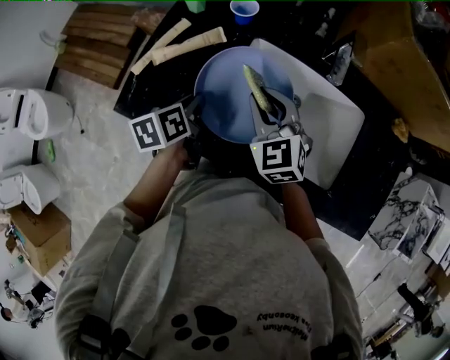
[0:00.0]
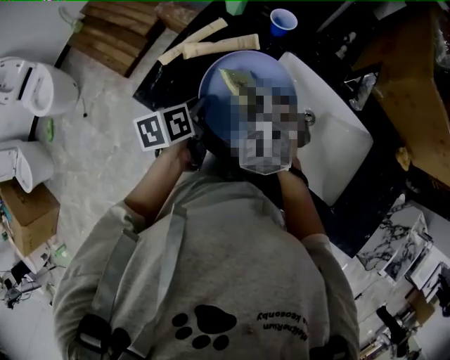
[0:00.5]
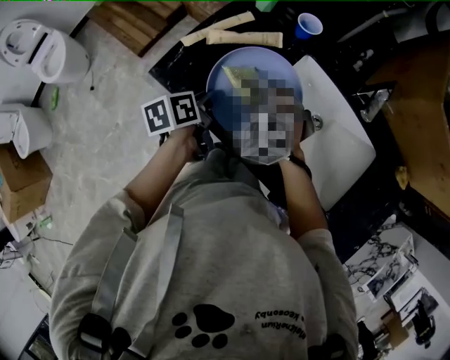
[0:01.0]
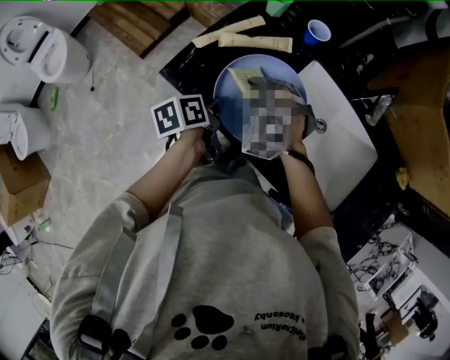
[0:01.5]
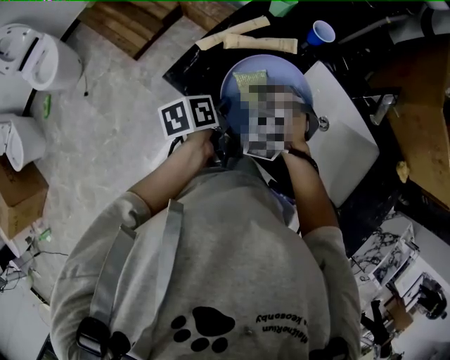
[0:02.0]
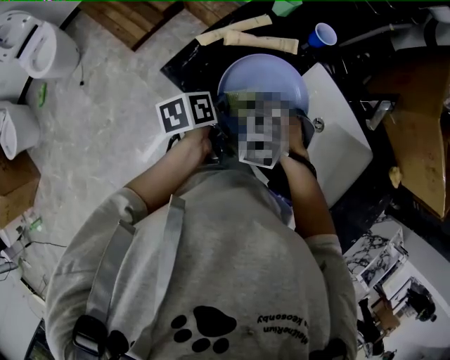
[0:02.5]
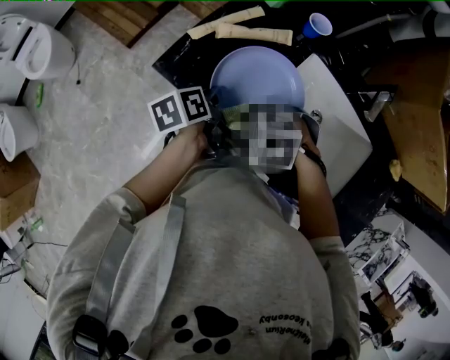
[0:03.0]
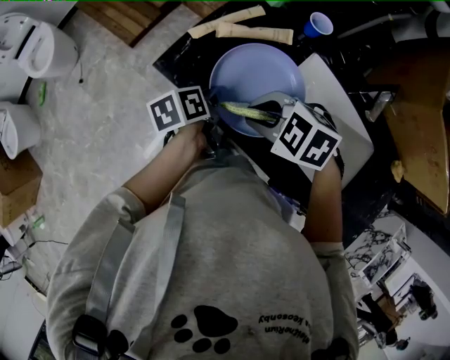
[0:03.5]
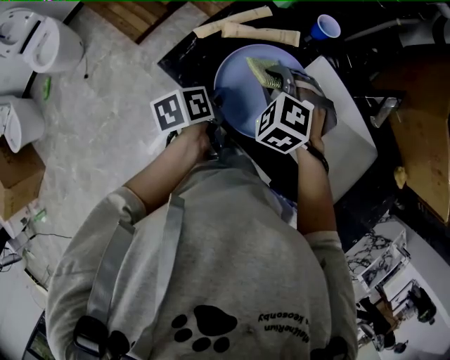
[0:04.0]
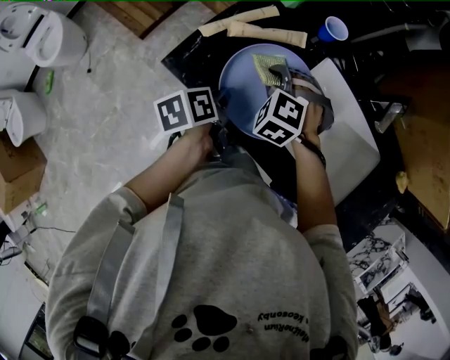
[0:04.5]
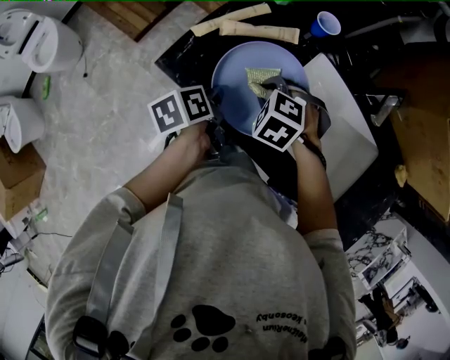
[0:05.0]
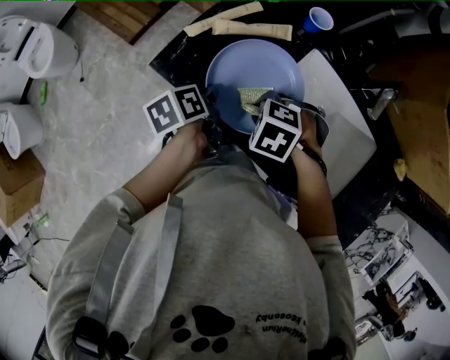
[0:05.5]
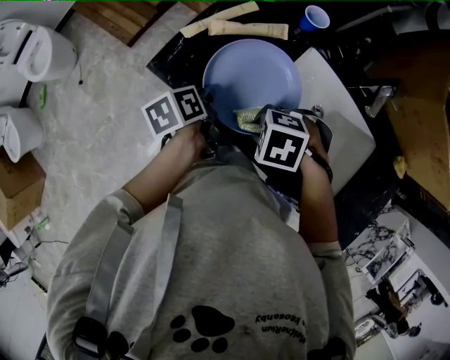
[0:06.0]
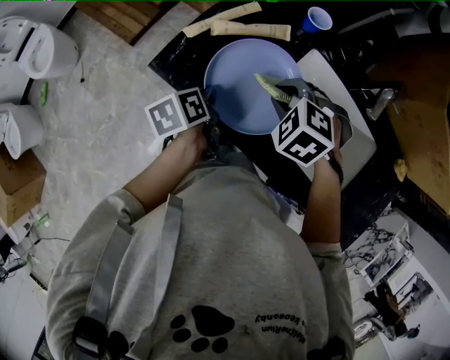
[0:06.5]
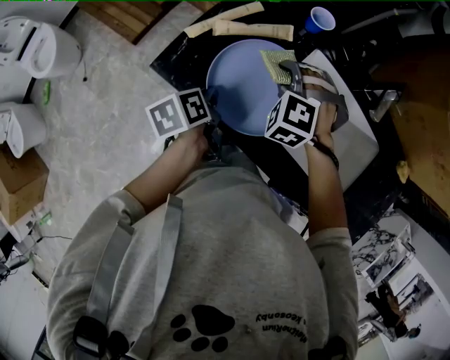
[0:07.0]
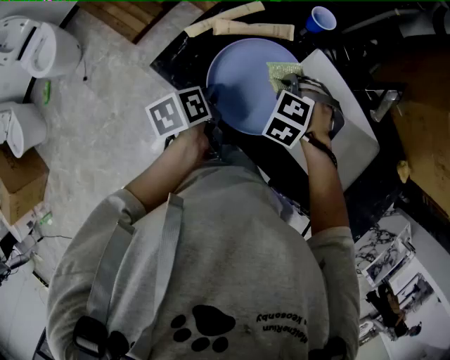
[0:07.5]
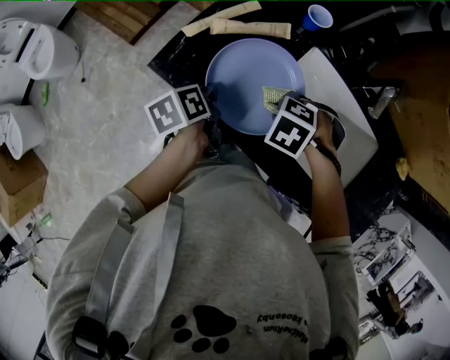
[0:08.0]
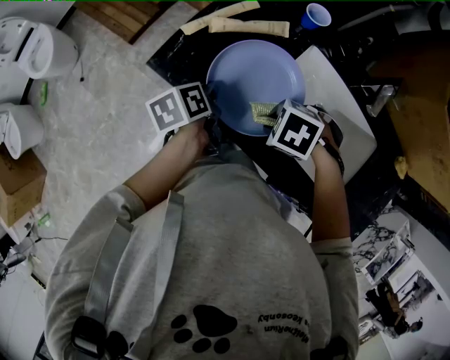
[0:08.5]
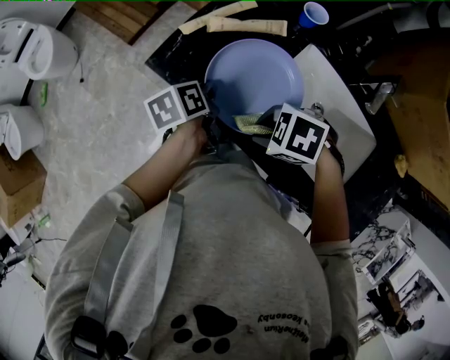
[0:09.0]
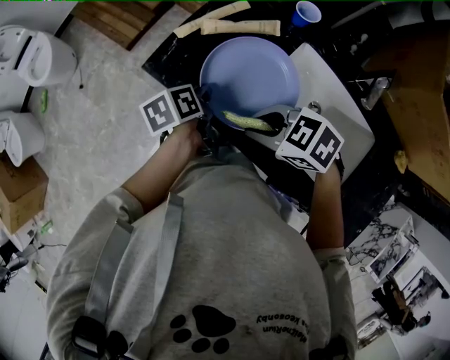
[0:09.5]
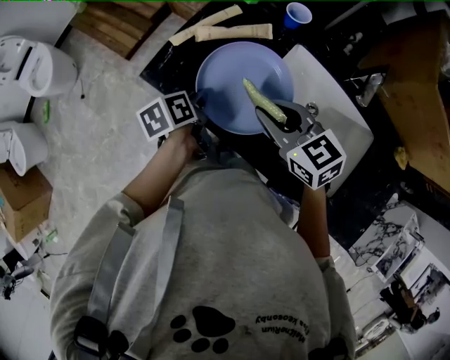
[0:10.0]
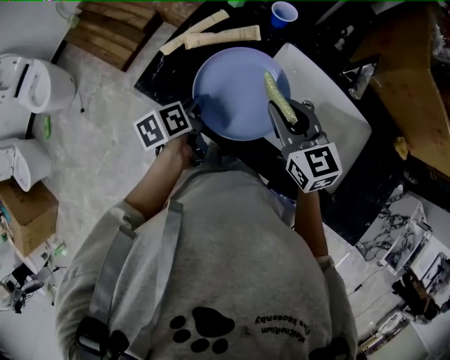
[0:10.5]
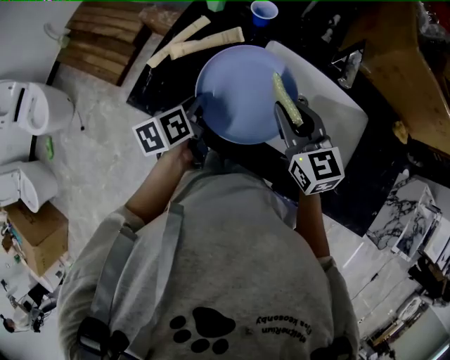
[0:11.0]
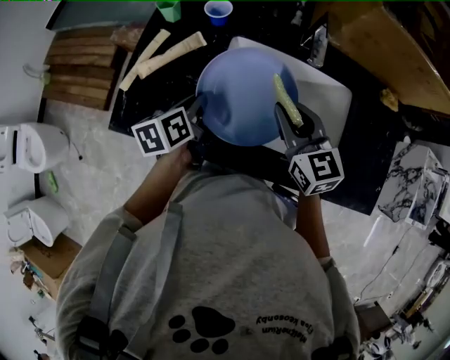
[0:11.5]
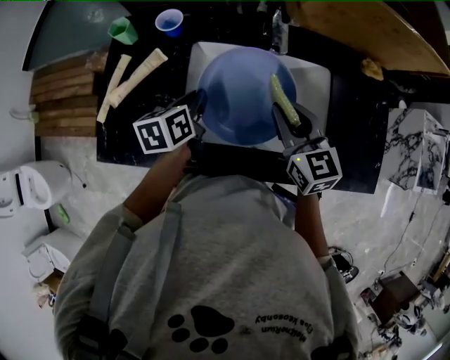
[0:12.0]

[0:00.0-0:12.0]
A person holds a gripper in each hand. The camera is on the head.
0:00.0 to 0:02.0: The left gripper travels to the left by approximately 10 cm, and turns by roughly 20 degrees. The right gripper moves to the left and downward, about 20 cm, and twists about 60 degrees counterclockwise, seen from behind.
0:04.0 to 0:06.0: The right gripper ends up roughly 15 cm from where it was, and rotates roughly 40 degrees.
0:08.0 to 0:10.0: The right gripper heads upward, covering roughly 10 cm, and tilts its fingers approximately 60 degrees upward.
0:10.0 to 0:12.0: The right gripper moves some 20 cm, and rotates roughly 50 degrees, while the left gripper changes place by approximately 25 cm, and rotates about 40 degrees.

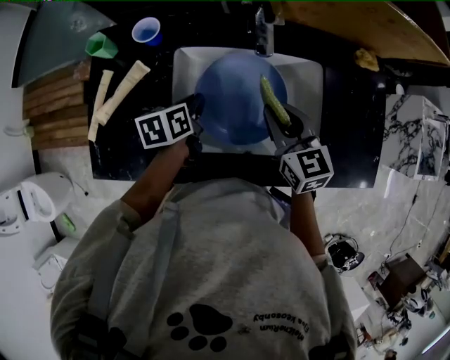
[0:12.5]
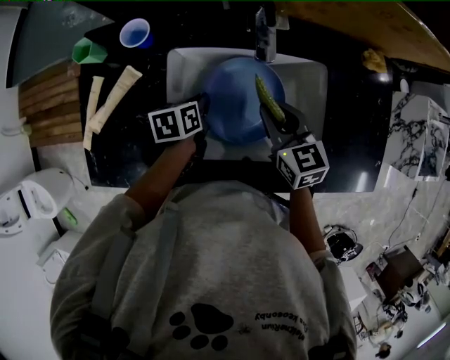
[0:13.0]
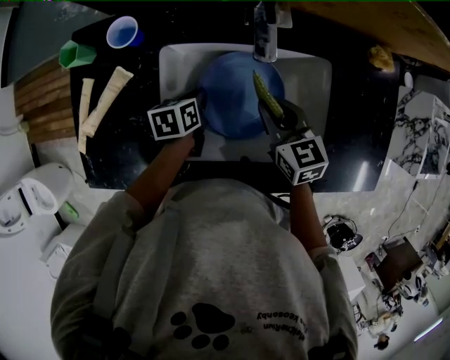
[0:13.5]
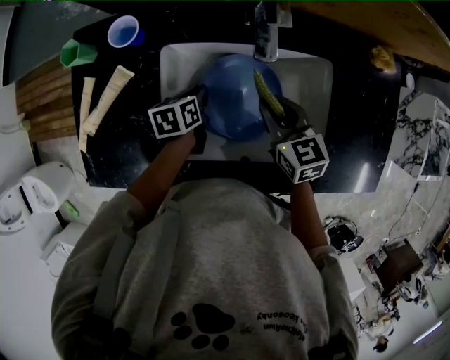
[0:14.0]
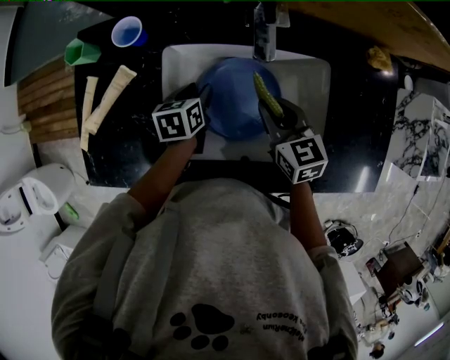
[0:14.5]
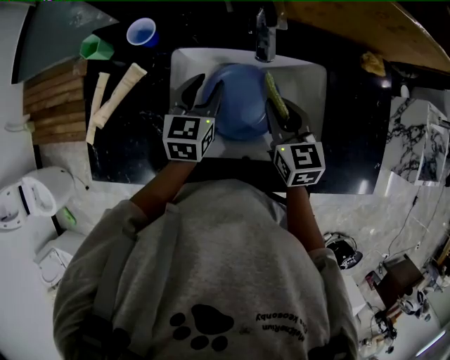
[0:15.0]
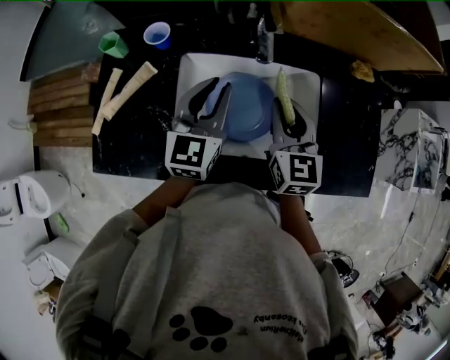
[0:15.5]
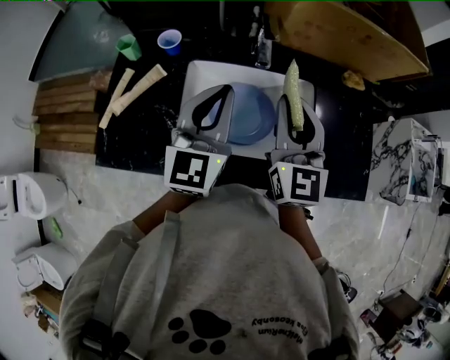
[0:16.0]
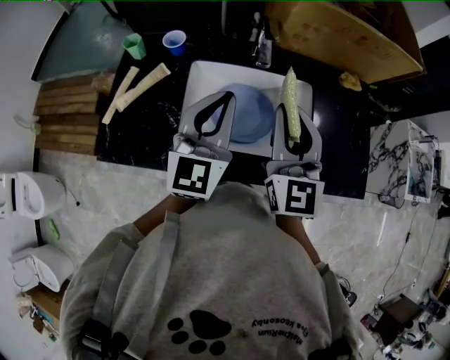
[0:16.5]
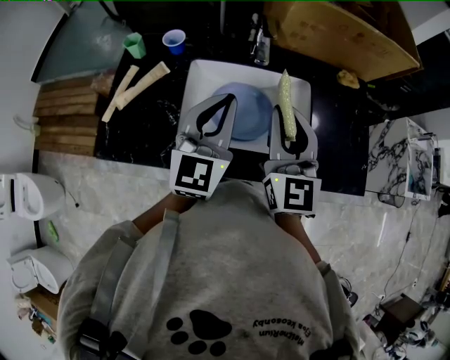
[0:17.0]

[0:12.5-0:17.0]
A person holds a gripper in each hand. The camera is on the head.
0:12.5 to 0:14.5: Both grippers travel together downward, approximately 5 cm. The left gripper opens.
0:14.5 to 0:17.0: The left gripper goes some 30 cm upward, angles its fingers upward, by some 50 degrees, and closes. The right gripper moves upward and backward, roughly 25 cm, and tilts its fingers approximately 40 degrees upward.

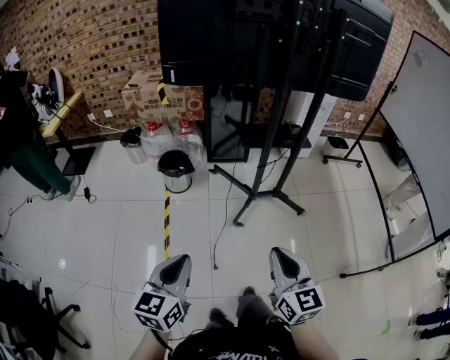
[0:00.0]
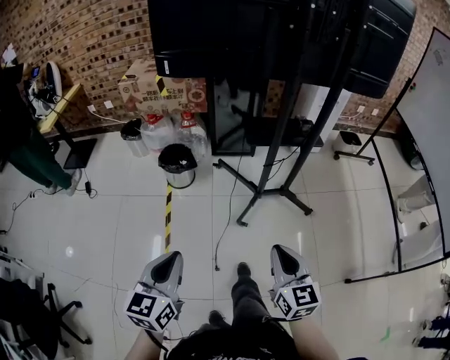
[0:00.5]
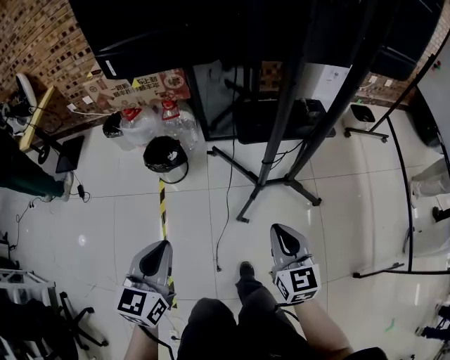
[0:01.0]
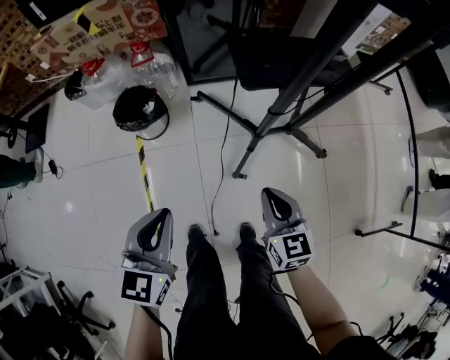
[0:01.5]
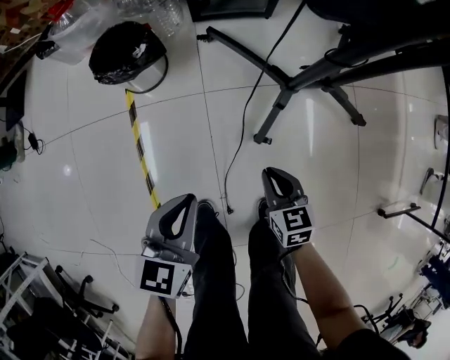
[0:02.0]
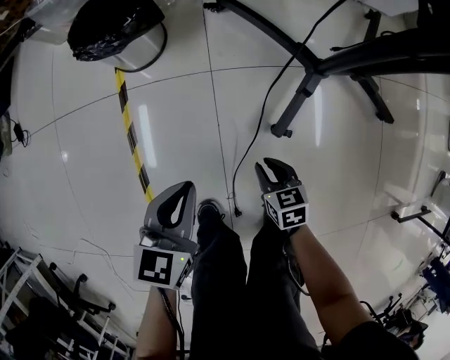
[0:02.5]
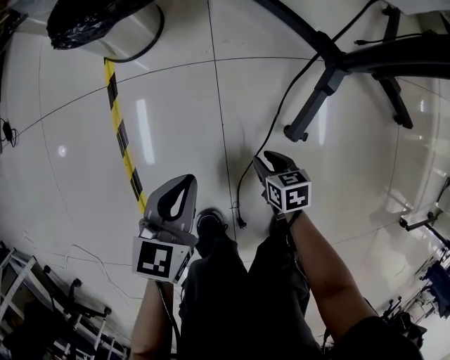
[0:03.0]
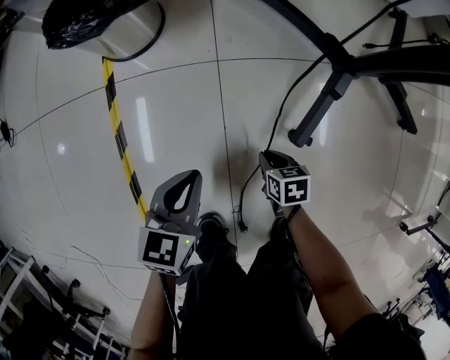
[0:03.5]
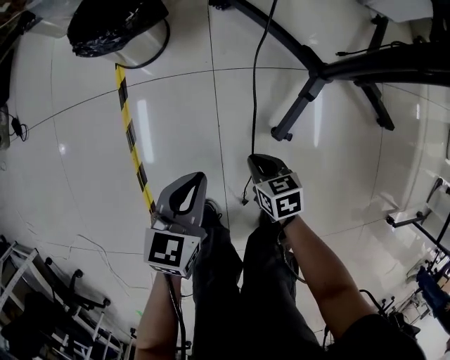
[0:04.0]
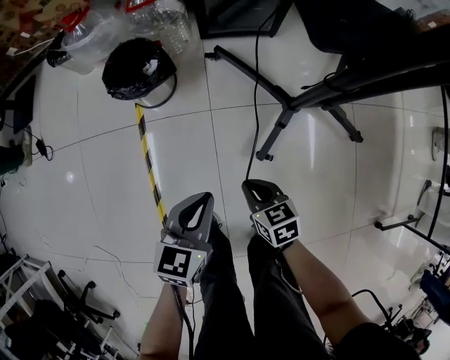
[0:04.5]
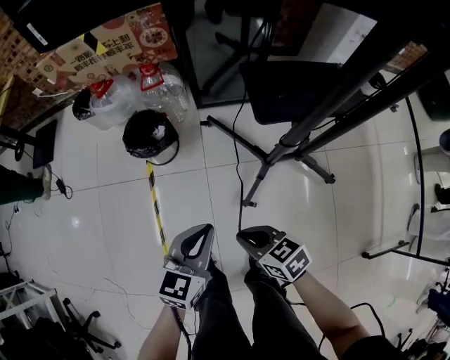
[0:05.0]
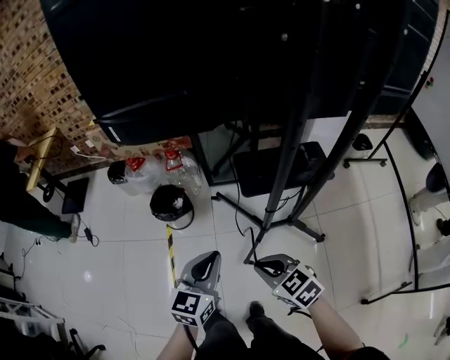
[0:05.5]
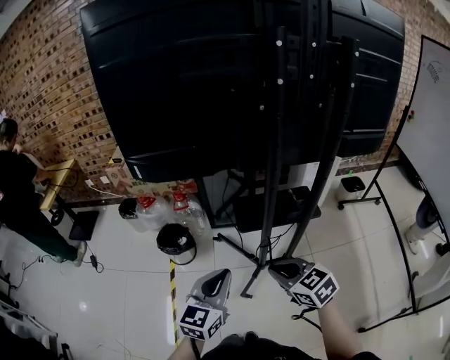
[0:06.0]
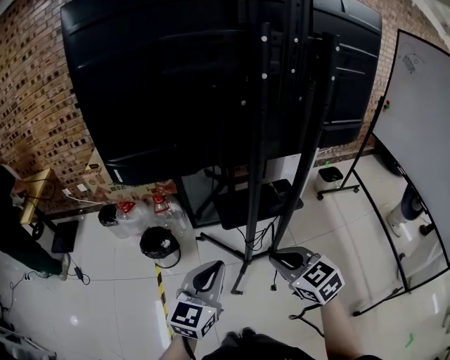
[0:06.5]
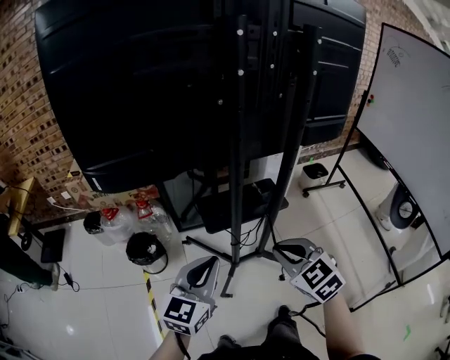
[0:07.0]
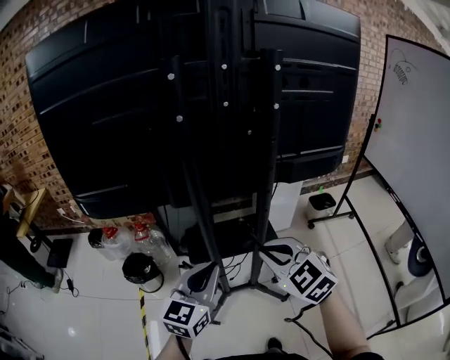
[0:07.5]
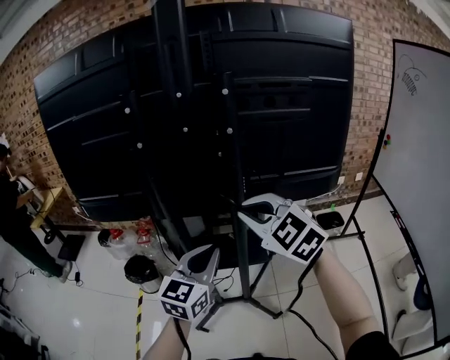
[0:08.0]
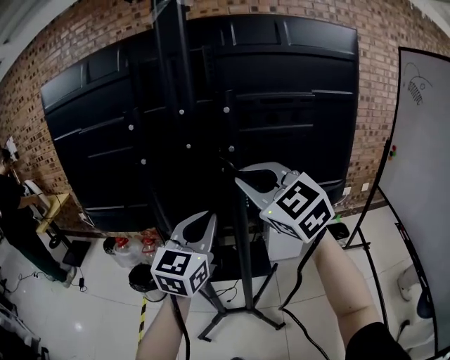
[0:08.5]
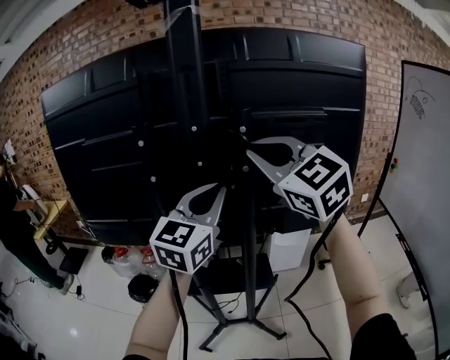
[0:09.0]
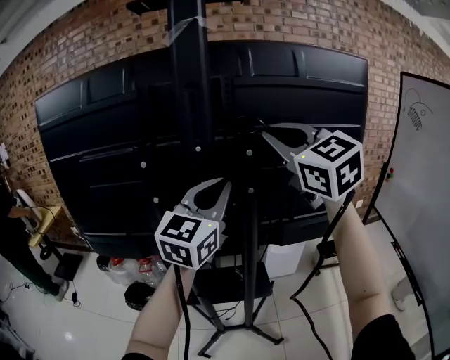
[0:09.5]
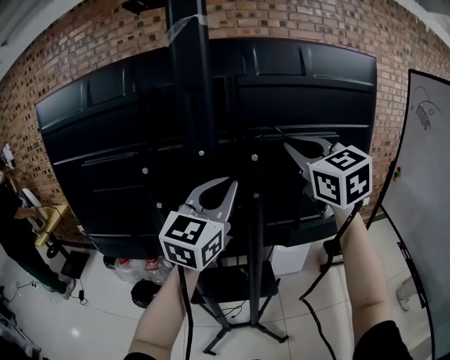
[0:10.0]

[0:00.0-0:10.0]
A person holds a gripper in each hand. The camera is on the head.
0:00.0 to 0:02.0: Both grippers travel together downward and forward, approximately 50 cm. The right gripper points its fingers roughly 30 degrees further downward.
0:02.0 to 0:04.0: Both grippers move downward, some 20 cm. The right gripper changes its angle by roughly 20 degrees, and opens and closes again.
0:04.0 to 0:06.0: Both grippers move upward, about 60 cm. The right gripper rotates about 40 degrees; the left gripper changes its angle by roughly 30 degrees.
0:06.0 to 0:08.0: The right gripper heads upward, to the right and forward, covering roughly 35 cm, and swivels approximately 40 degrees. The left gripper is displaced to the right, forward and upward by about 35 cm.
0:08.0 to 0:10.0: Both grippers travel together upward and forward, approximately 30 cm. The right gripper changes its angle by some 30 degrees.
